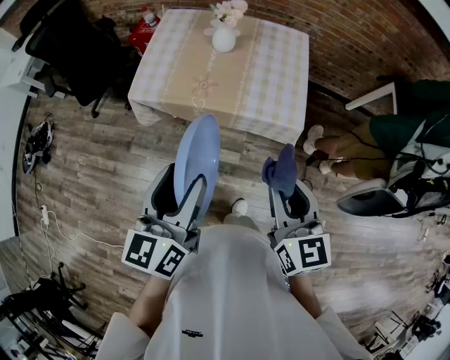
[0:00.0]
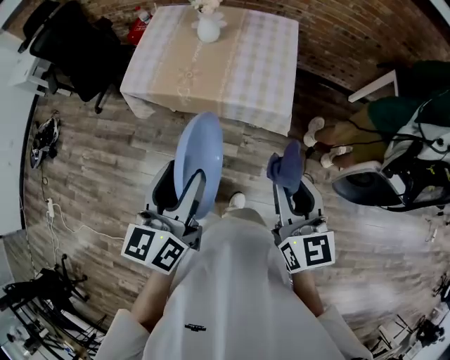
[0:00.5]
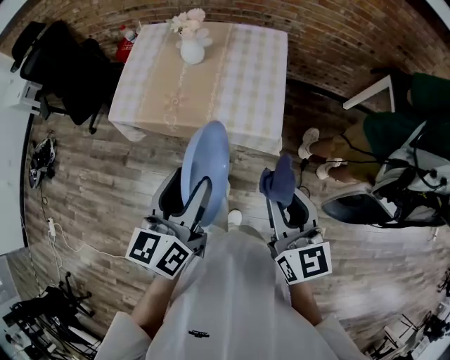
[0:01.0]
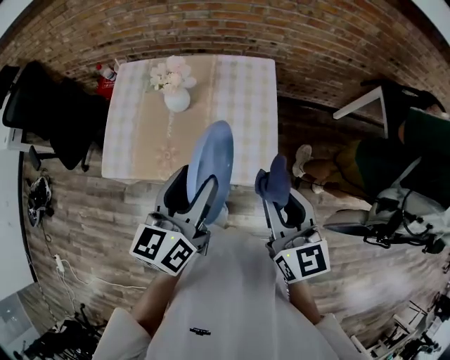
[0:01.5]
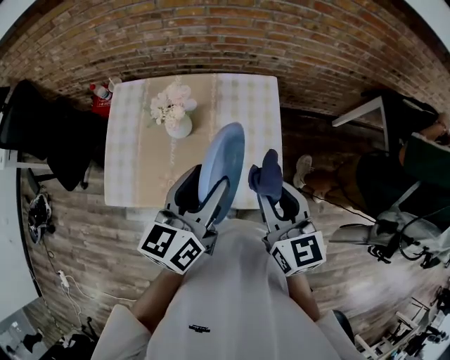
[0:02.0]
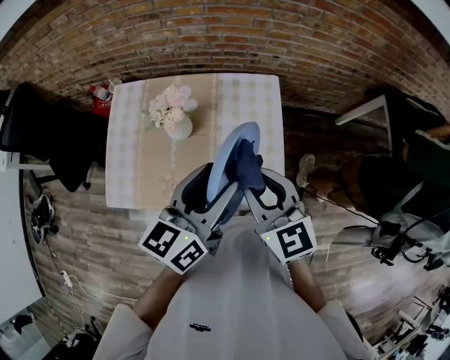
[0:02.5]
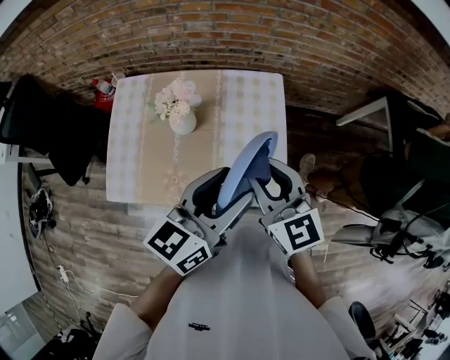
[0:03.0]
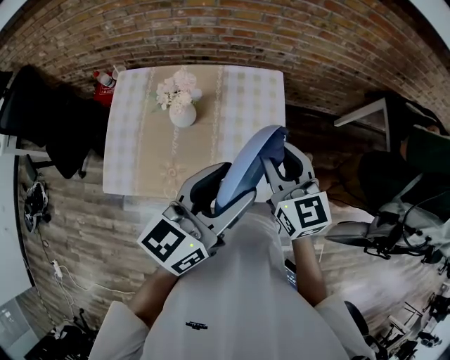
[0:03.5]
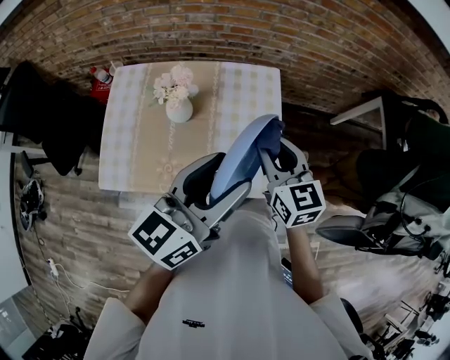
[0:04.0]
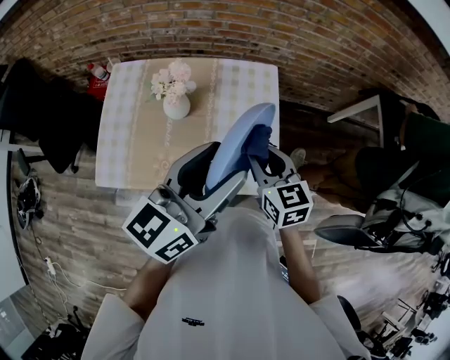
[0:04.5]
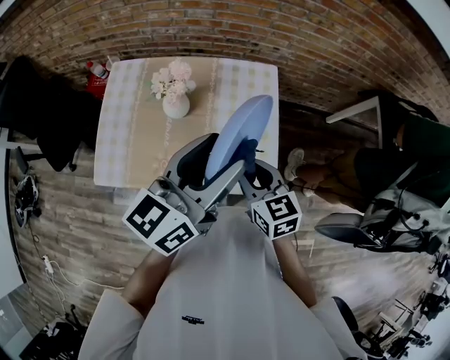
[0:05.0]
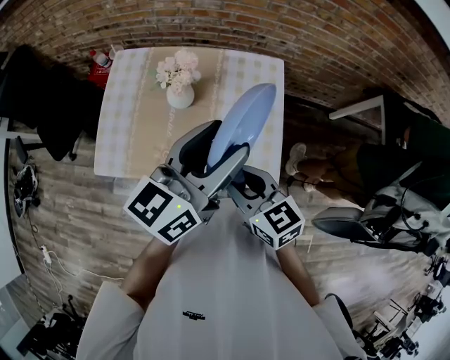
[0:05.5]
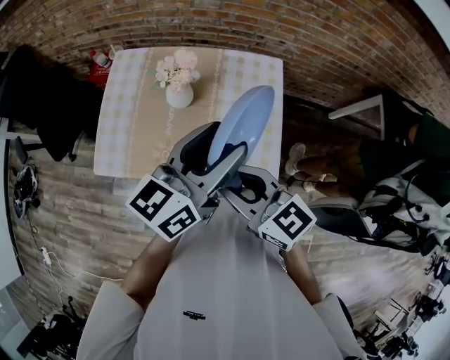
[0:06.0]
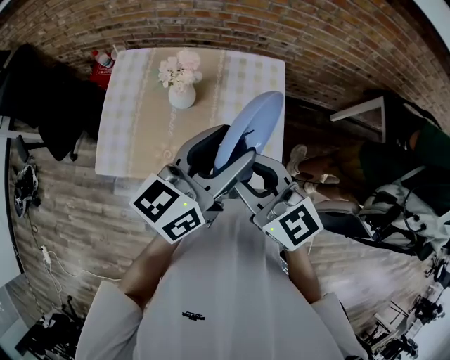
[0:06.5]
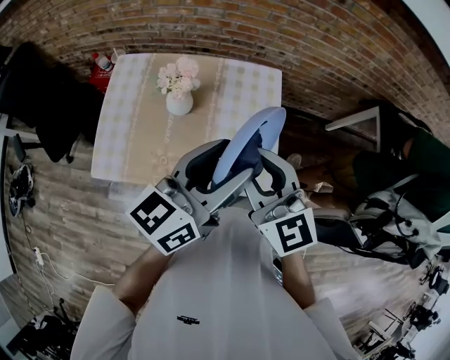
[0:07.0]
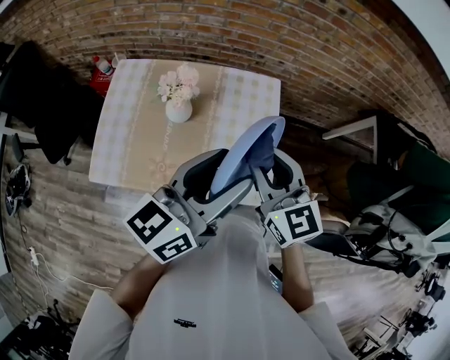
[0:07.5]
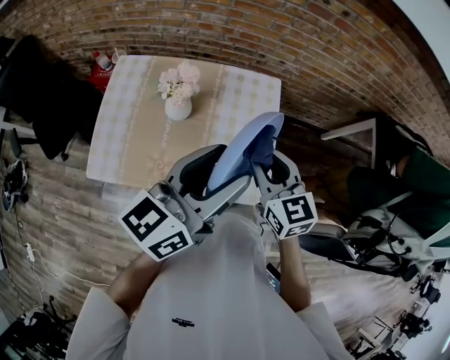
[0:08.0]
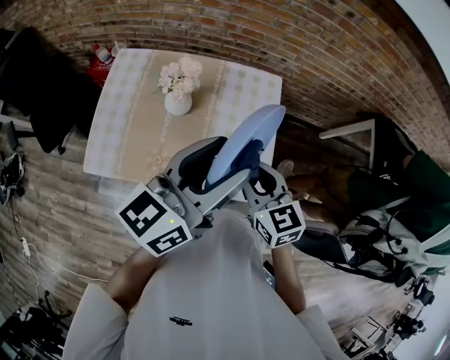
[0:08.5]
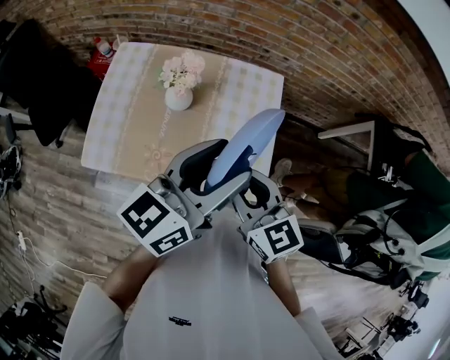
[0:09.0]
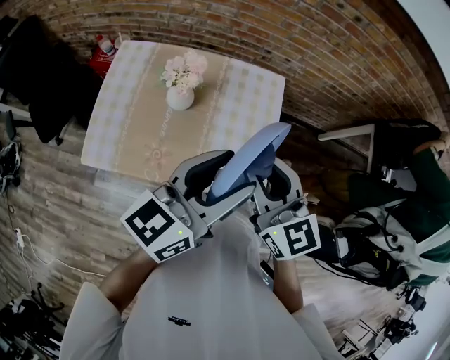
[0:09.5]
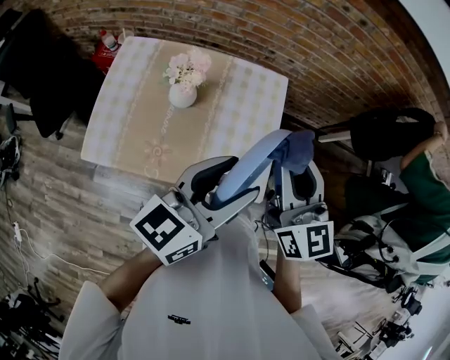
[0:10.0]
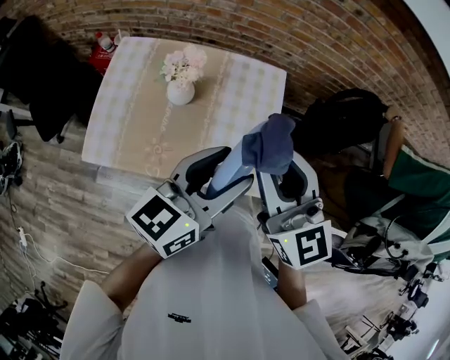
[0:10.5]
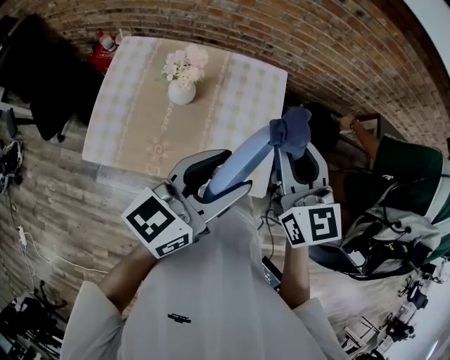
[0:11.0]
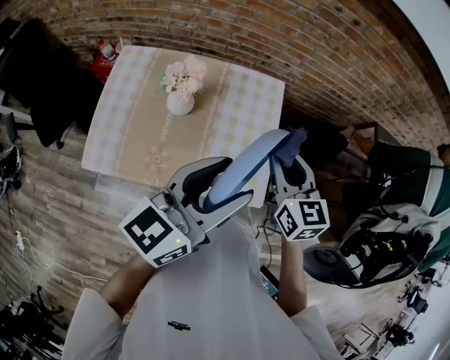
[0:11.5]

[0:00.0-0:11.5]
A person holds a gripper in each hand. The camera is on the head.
0:00.0 to 0:02.0: Both grippers are carried forward, roughly 40 cm.
0:02.0 to 0:04.0: The right gripper goes approximately 5 cm forward. The left gripper shifts by roughly 5 cm.
0:04.0 to 0:06.0: The right gripper goes about 15 cm backward and to the left, and swivels approximately 30 degrees.
0:06.0 to 0:07.5: The right gripper is displaced forward and to the right by about 10 cm, and turns by about 30 degrees.
0:07.5 to 0:09.5: The right gripper moves roughly 10 cm downward and comes back.
0:09.5 to 0:11.5: The right gripper travels to the right, forward and downward by roughly 10 cm.

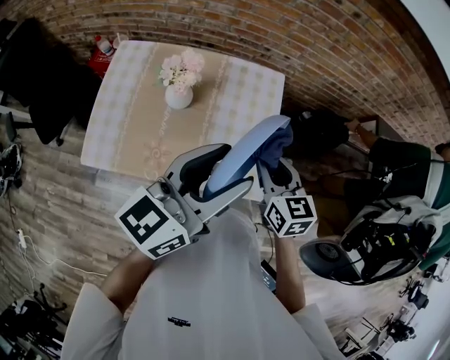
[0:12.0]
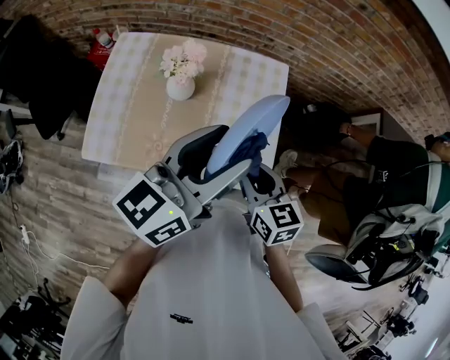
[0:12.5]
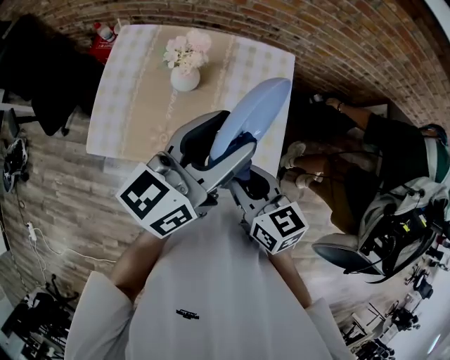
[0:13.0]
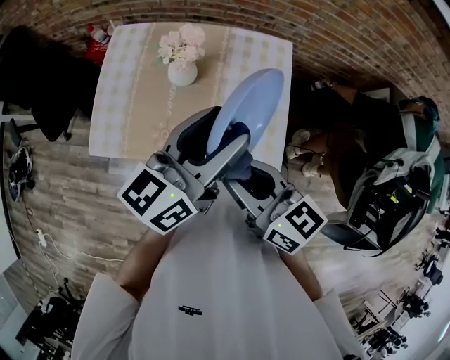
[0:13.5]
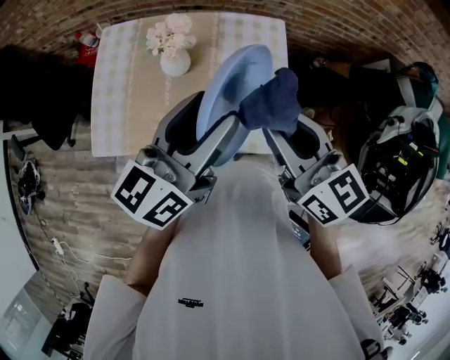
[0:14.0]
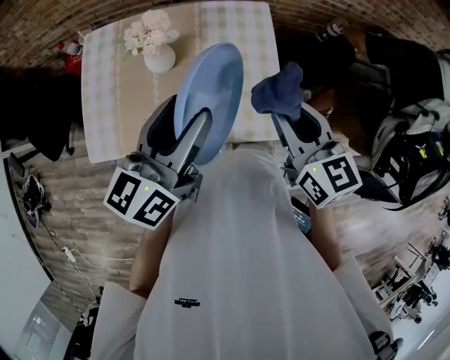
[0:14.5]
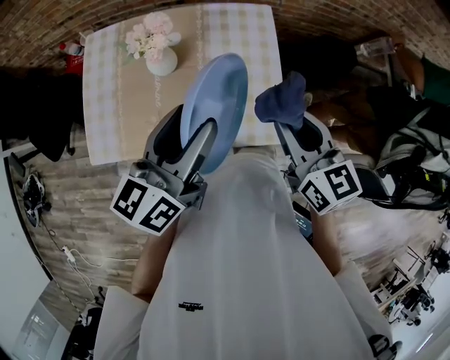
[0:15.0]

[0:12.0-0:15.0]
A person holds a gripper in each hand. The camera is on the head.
0:12.0 to 0:13.5: The right gripper shifts about 15 cm to the left, backward and upward, and turns by some 30 degrees. The left gripper ends up some 5 cm from where it was.
0:13.5 to 0:15.0: The right gripper shifts approximately 15 cm to the right and forward, and turns by about 30 degrees.

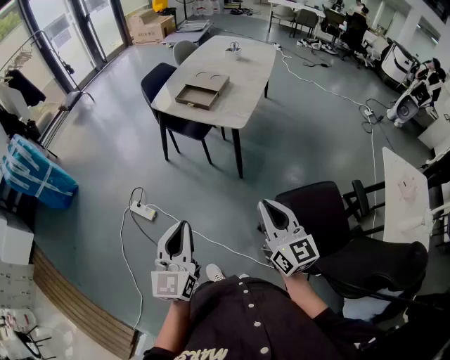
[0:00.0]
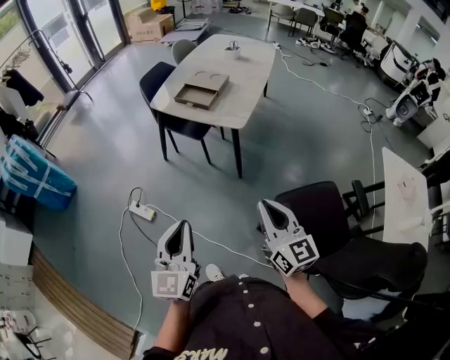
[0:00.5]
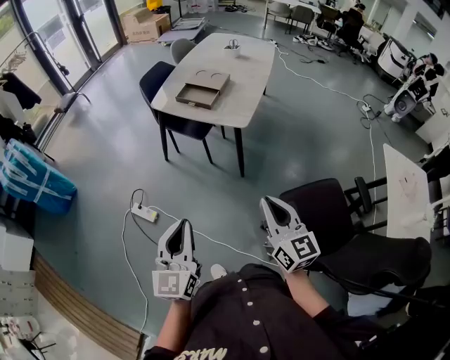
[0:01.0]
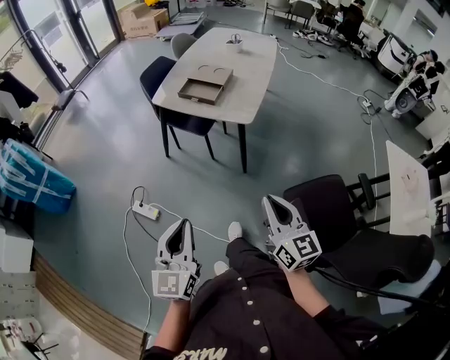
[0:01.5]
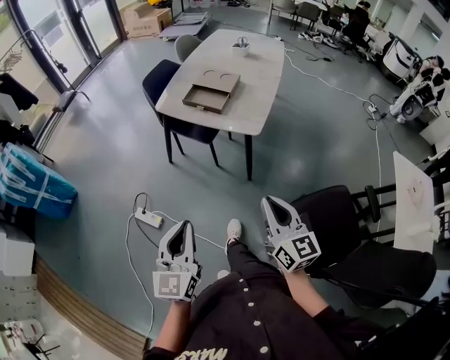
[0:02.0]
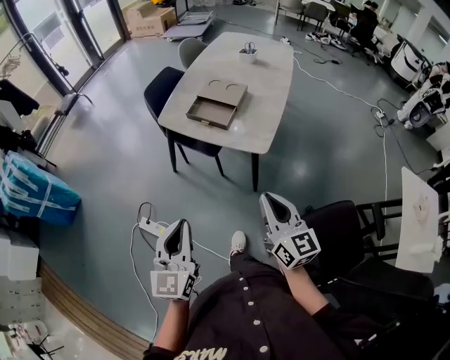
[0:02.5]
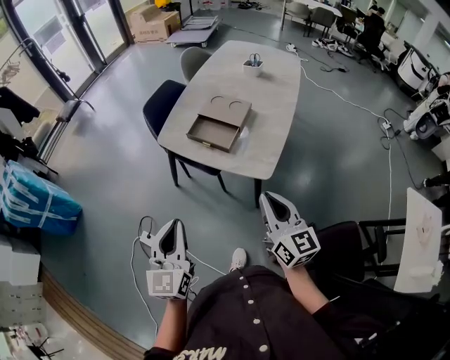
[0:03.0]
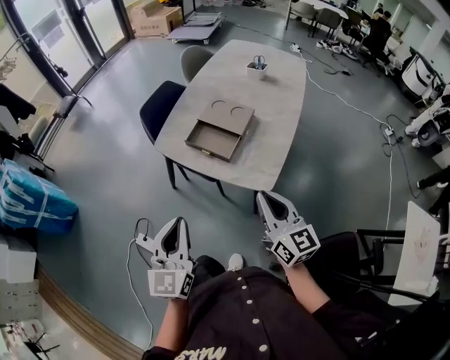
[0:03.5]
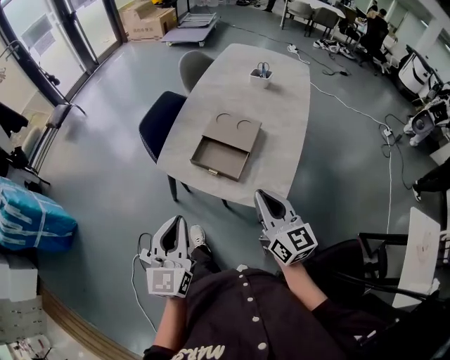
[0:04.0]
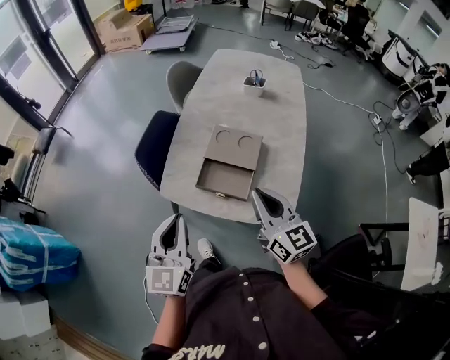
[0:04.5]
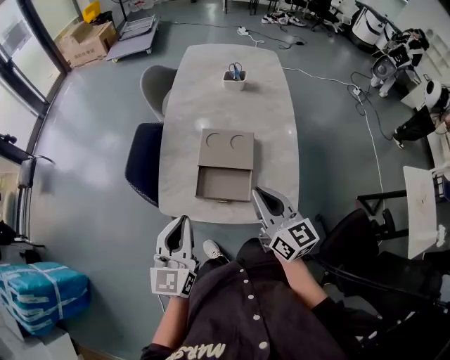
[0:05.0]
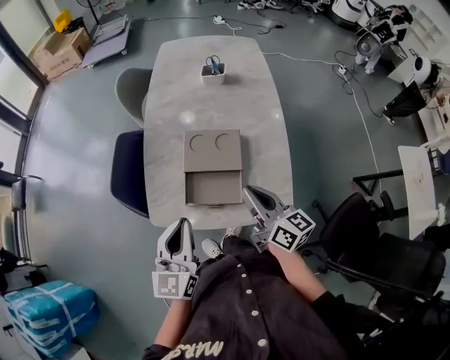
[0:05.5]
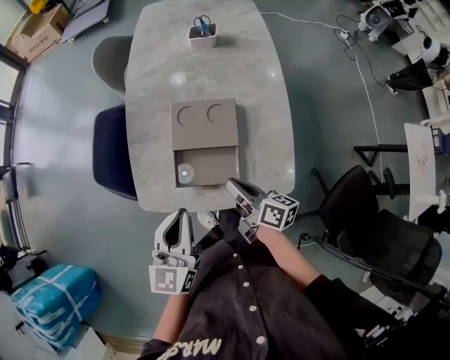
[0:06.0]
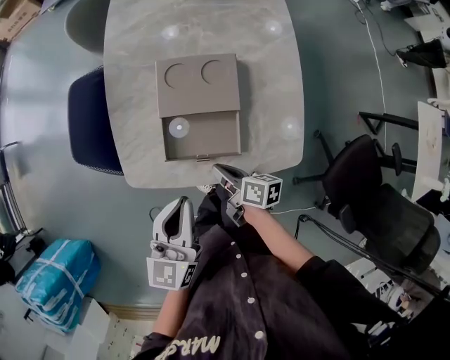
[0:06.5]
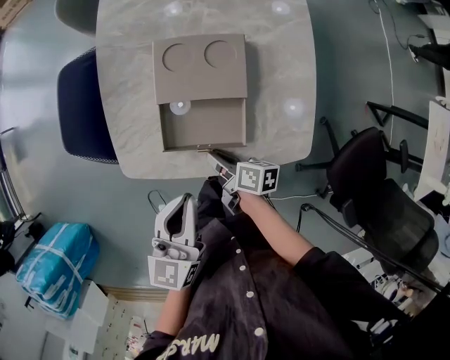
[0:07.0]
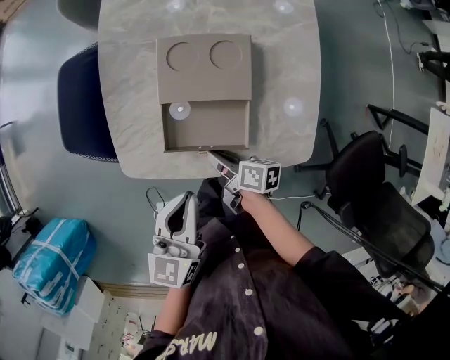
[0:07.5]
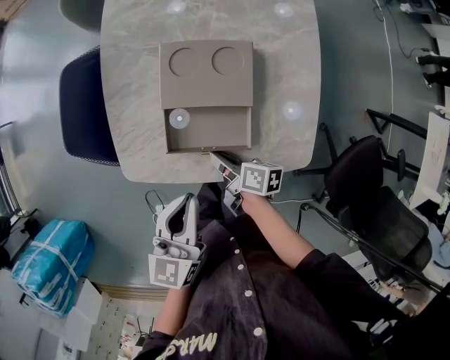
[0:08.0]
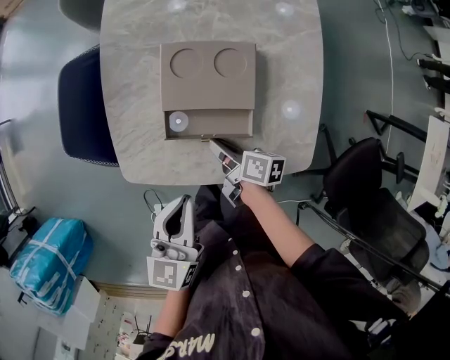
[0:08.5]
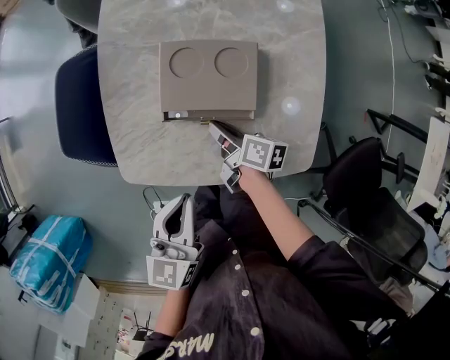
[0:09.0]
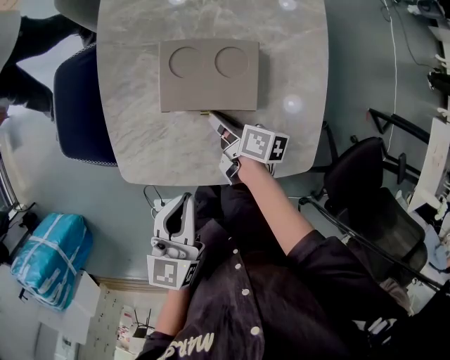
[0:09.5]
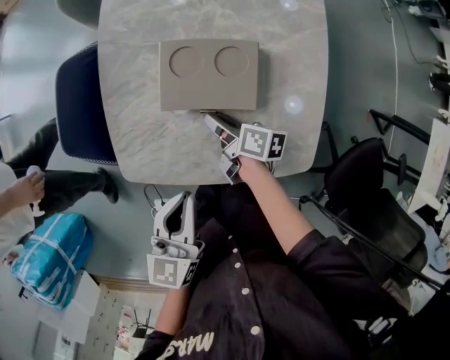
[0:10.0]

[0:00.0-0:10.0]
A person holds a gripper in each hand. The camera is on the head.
0:00.0 to 0:02.0: The grippers both shift forward and to the left by about 15 cm.
0:02.0 to 0:04.0: The two grippers travel together, forward, roughly 40 cm.
0:04.0 to 0:06.0: The left gripper travels forward by roughly 25 cm, and rotates roughly 30 degrees. Meanwhile the right gripper travels forward and downward by roughly 25 cm, and rotates around the line of its fingers by some 50 degrees, clockwise from behind.
0:06.0 to 0:08.0: The right gripper moves downward, roughly 15 cm, and swivels about 30 degrees. Meanwhile the left gripper travels downward by about 10 cm.
0:08.0 to 0:10.0: The right gripper travels forward by approximately 10 cm.

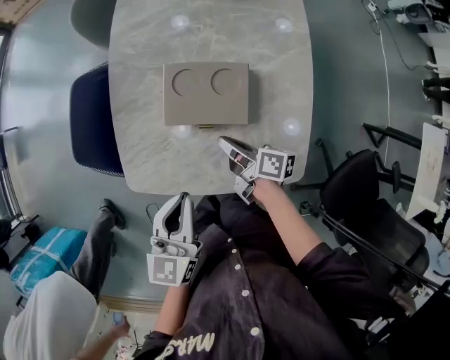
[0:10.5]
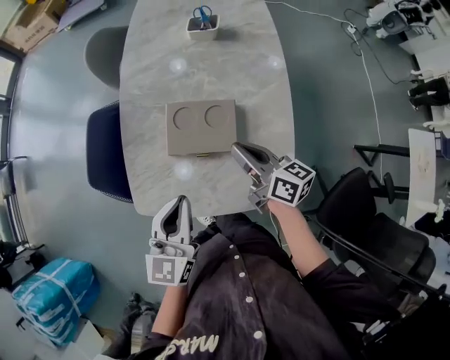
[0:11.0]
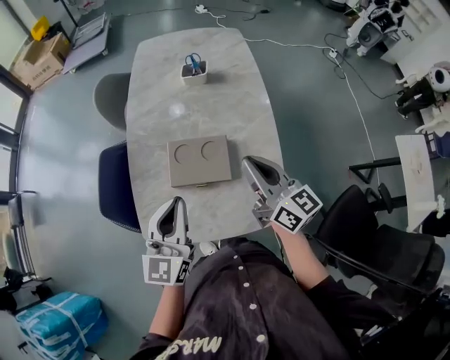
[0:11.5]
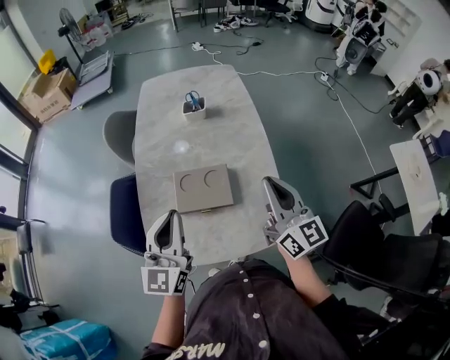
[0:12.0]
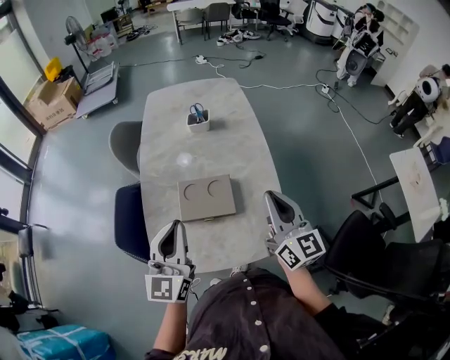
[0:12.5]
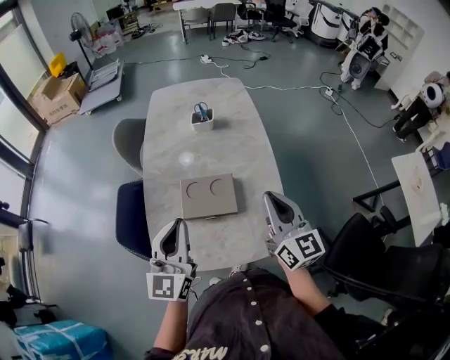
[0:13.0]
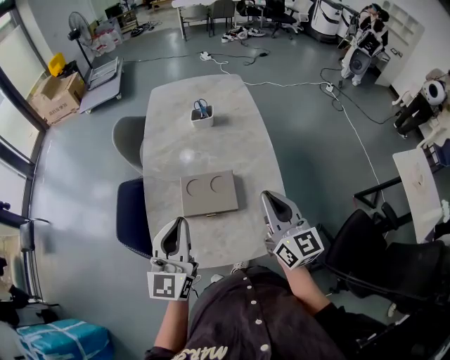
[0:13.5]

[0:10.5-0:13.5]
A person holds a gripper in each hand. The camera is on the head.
0:10.5 to 0:12.0: The right gripper goes approximately 35 cm upward, and changes its angle by some 70 degrees. Meanwhile the left gripper shifts approximately 20 cm upward, and turns by some 30 degrees.
0:12.0 to 0:13.5: The grippers make only small movements.
